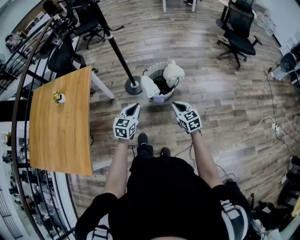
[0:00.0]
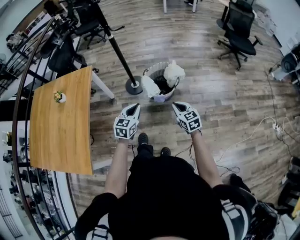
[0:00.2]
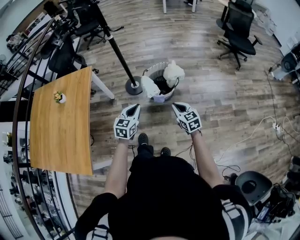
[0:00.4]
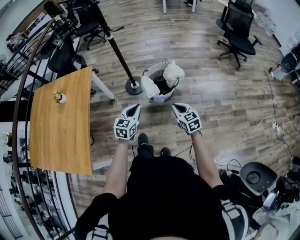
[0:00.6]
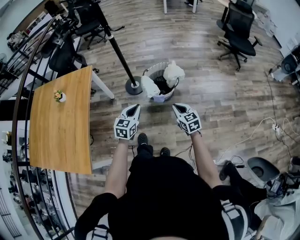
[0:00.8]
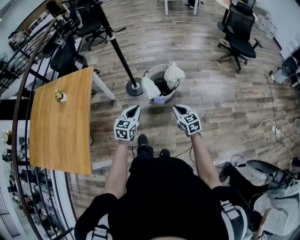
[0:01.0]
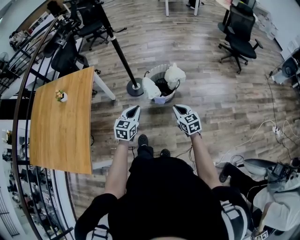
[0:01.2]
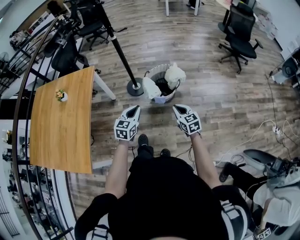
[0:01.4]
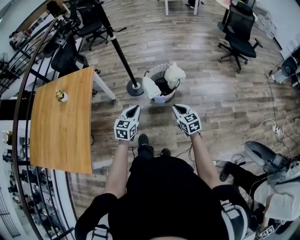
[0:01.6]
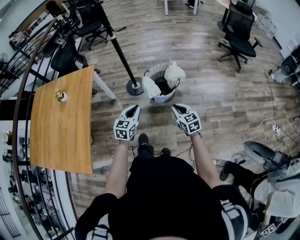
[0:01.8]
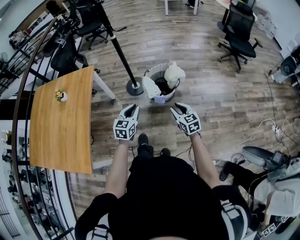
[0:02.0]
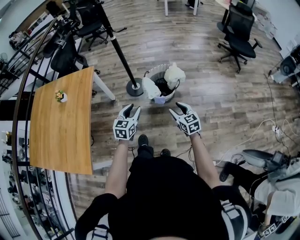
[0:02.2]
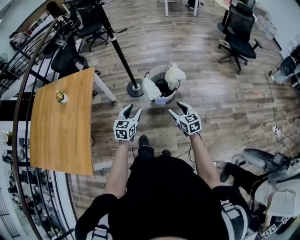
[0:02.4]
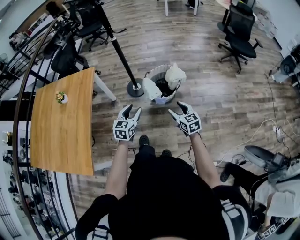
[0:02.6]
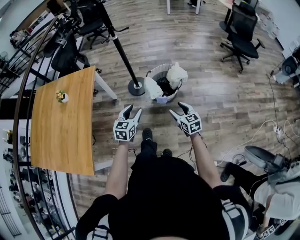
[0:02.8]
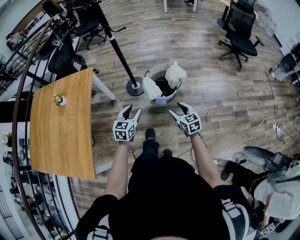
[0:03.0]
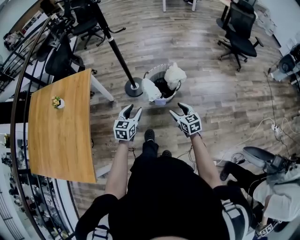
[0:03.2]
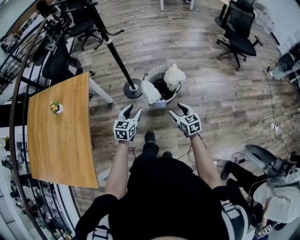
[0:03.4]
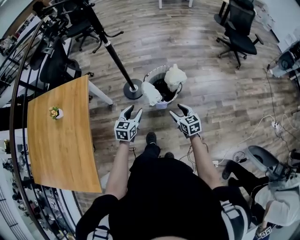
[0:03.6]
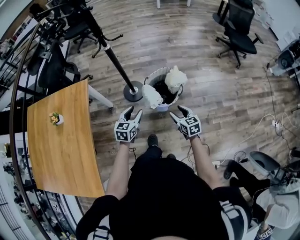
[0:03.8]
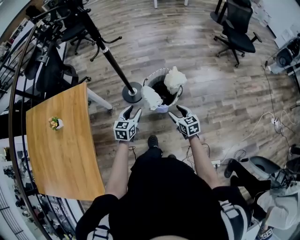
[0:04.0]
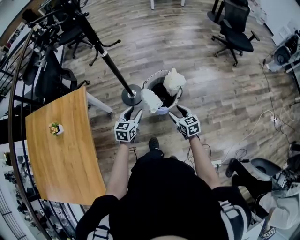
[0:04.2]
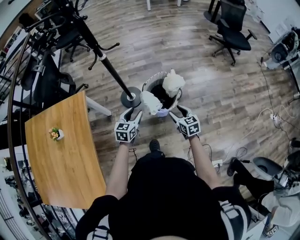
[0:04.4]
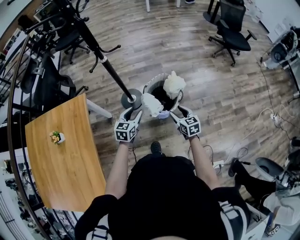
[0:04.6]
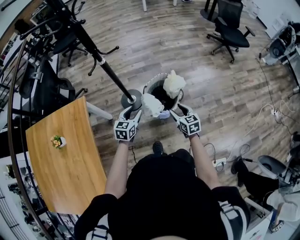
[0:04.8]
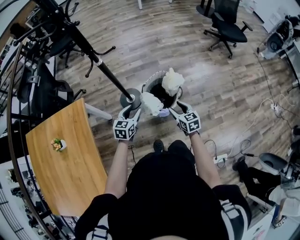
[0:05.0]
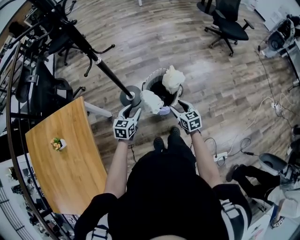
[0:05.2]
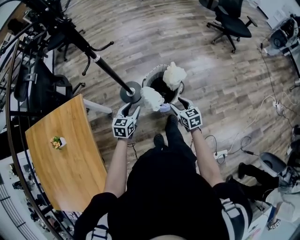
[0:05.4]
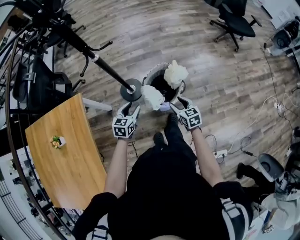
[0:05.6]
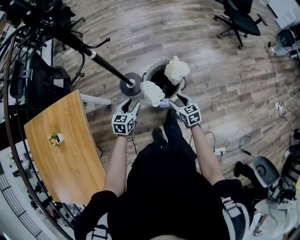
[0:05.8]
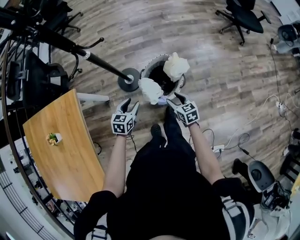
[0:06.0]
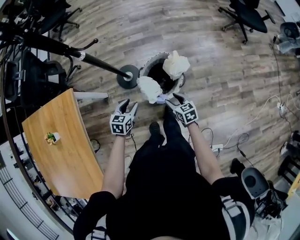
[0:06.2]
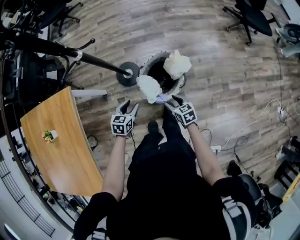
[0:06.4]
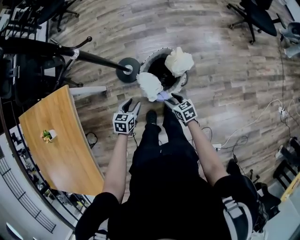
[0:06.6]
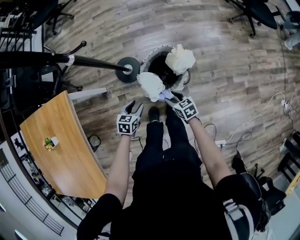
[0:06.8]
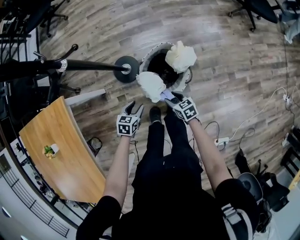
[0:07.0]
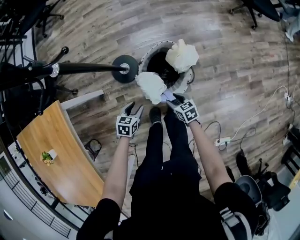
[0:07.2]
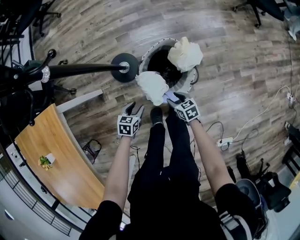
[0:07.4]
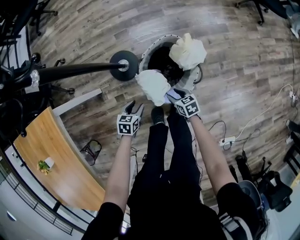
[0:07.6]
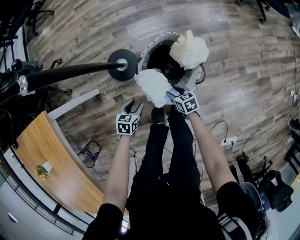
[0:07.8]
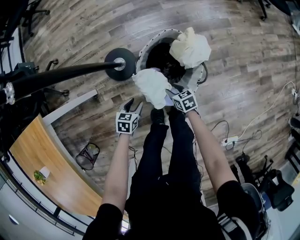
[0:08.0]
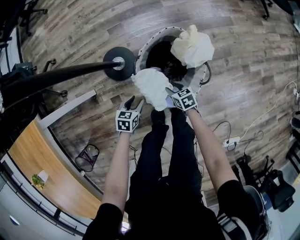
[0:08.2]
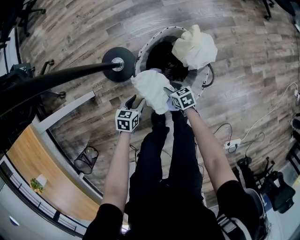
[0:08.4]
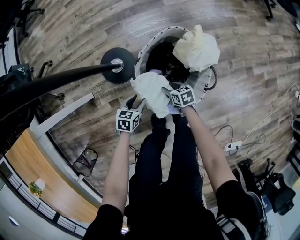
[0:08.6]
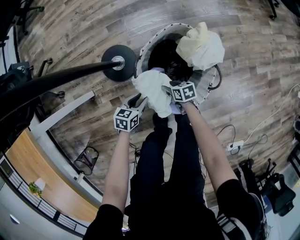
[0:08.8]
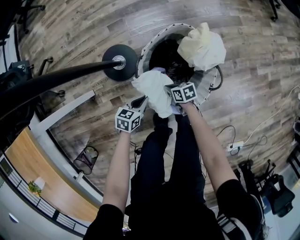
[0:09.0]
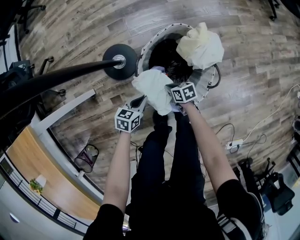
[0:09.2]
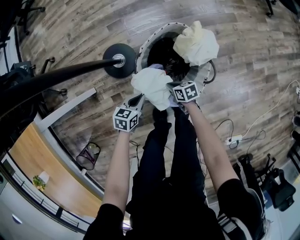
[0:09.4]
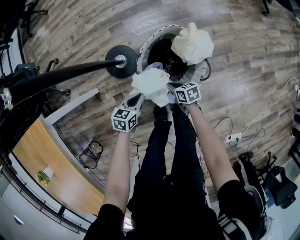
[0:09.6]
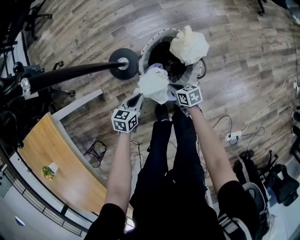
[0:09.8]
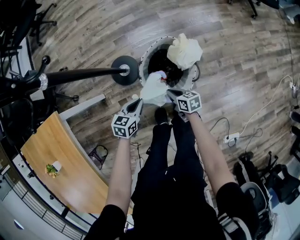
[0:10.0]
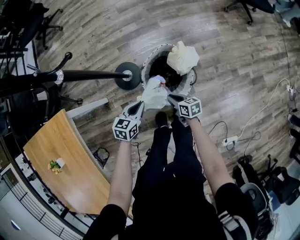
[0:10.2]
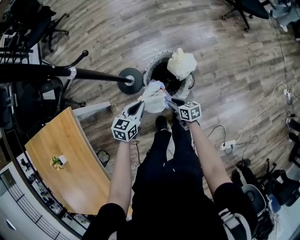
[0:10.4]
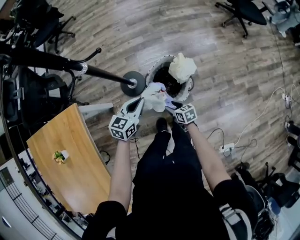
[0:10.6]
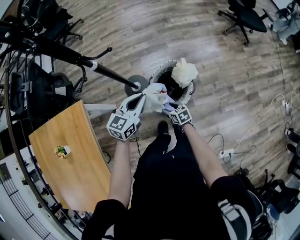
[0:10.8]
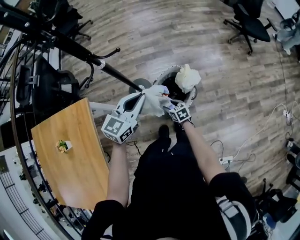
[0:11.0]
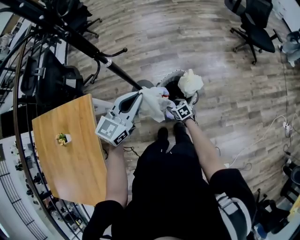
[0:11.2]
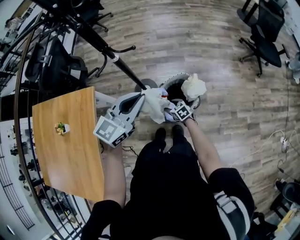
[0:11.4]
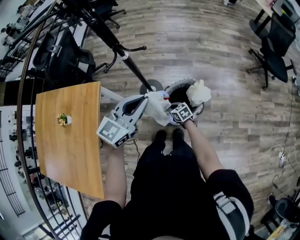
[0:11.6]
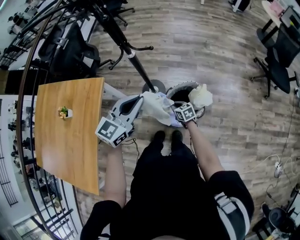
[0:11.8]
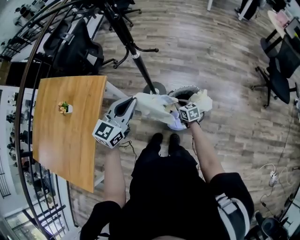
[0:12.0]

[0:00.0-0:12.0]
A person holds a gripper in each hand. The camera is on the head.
0:00.0 to 0:01.6: The grippers move only a little.
0:01.6 to 0:03.0: The left gripper shifts by some 5 cm, and opens up. The right gripper opens its fingers.
0:03.0 to 0:04.4: Both grippers travel together forward, about 15 cm.
0:04.4 to 0:06.0: Both grippers move forward and downward, approximately 10 cm.
0:06.0 to 0:07.6: Both grippers travel together downward, some 30 cm.
0:07.6 to 0:09.0: The grippers both shift downward by roughly 15 cm. The right gripper closes up; the left gripper closes.
0:09.0 to 0:10.4: The grippers both shift upward by about 35 cm. The right gripper opens up.
0:10.4 to 0:12.0: The right gripper is displaced upward, forward and to the left by about 20 cm, rotates roughly 40 degrees, and closes its fingers; the left gripper travels upward by approximately 30 cm, and rotates about 40 degrees.

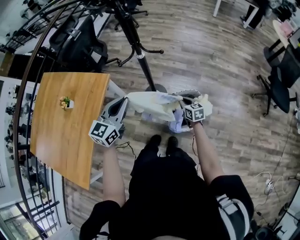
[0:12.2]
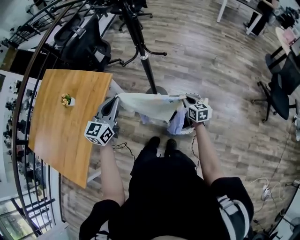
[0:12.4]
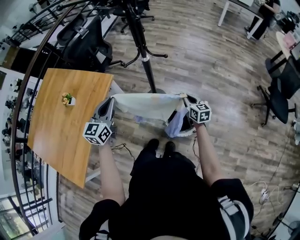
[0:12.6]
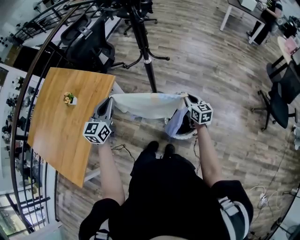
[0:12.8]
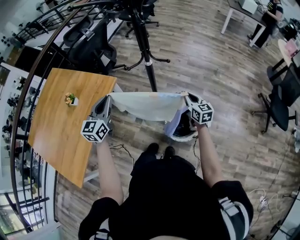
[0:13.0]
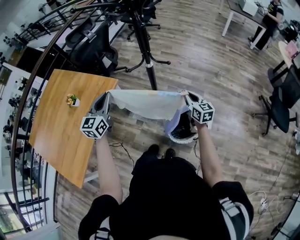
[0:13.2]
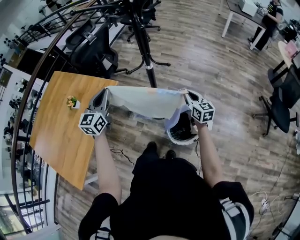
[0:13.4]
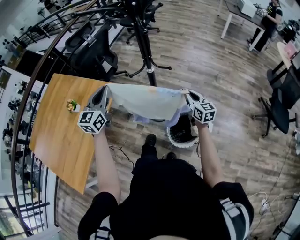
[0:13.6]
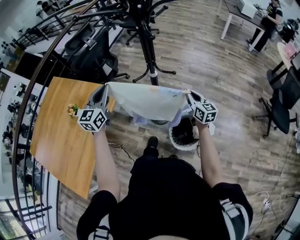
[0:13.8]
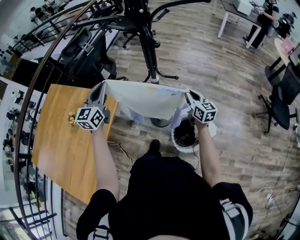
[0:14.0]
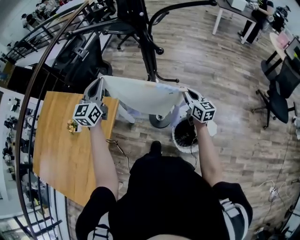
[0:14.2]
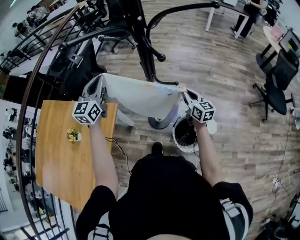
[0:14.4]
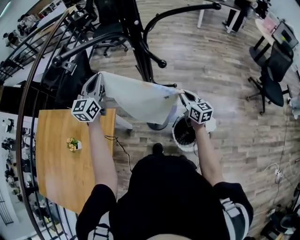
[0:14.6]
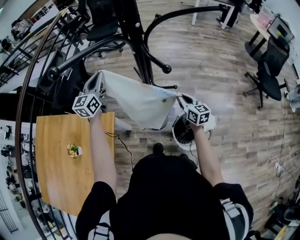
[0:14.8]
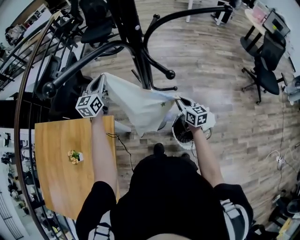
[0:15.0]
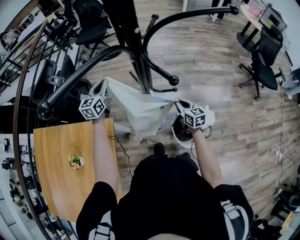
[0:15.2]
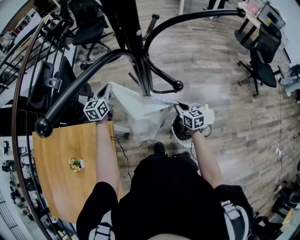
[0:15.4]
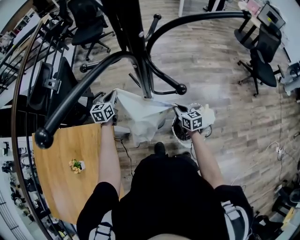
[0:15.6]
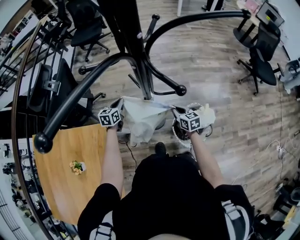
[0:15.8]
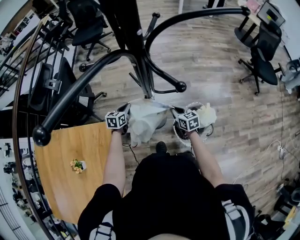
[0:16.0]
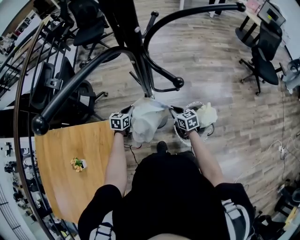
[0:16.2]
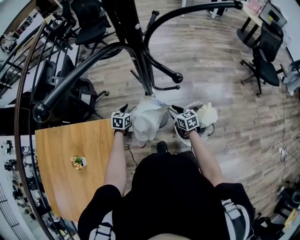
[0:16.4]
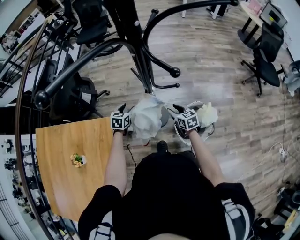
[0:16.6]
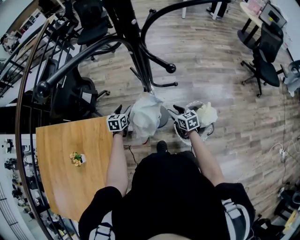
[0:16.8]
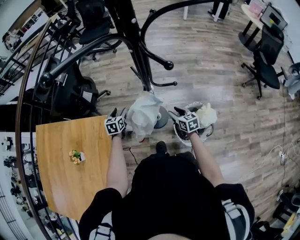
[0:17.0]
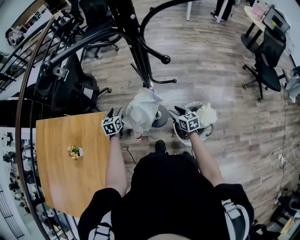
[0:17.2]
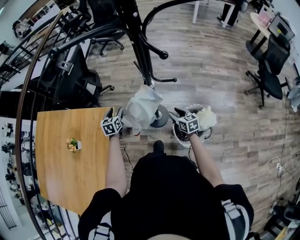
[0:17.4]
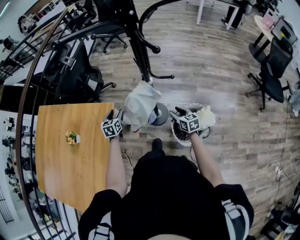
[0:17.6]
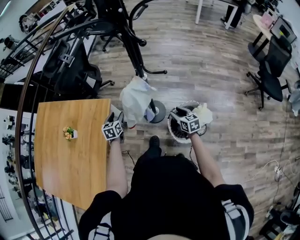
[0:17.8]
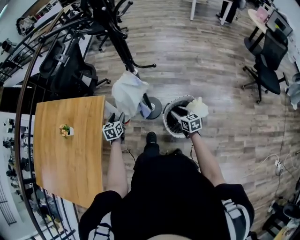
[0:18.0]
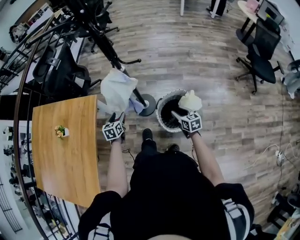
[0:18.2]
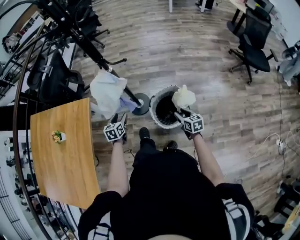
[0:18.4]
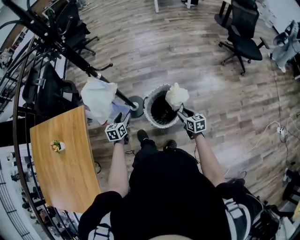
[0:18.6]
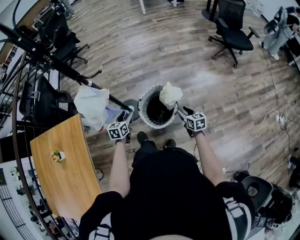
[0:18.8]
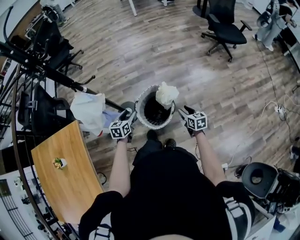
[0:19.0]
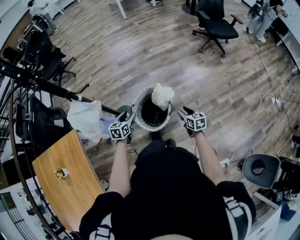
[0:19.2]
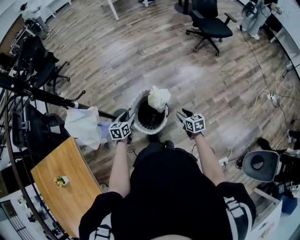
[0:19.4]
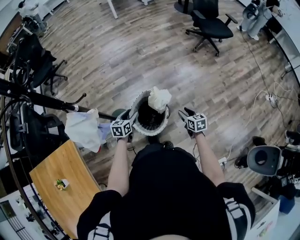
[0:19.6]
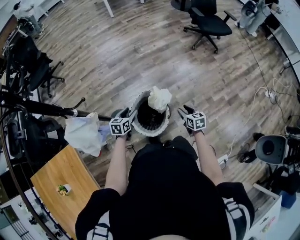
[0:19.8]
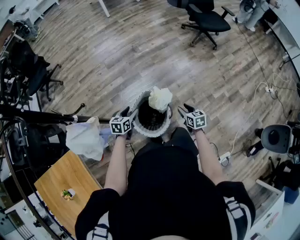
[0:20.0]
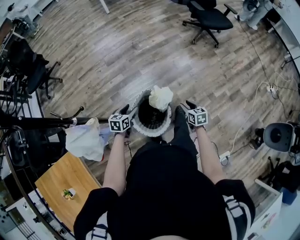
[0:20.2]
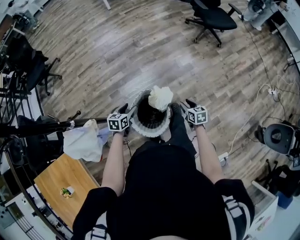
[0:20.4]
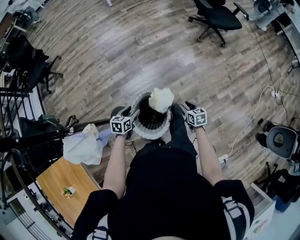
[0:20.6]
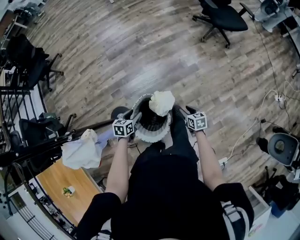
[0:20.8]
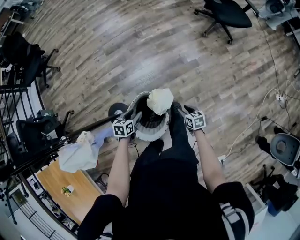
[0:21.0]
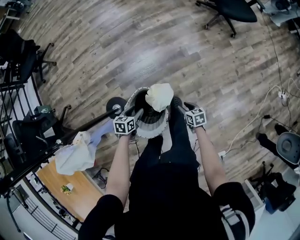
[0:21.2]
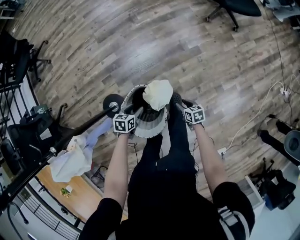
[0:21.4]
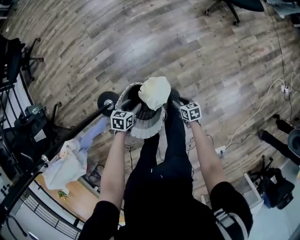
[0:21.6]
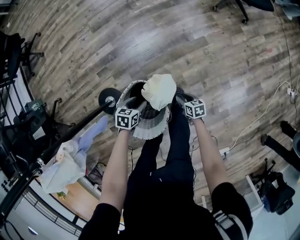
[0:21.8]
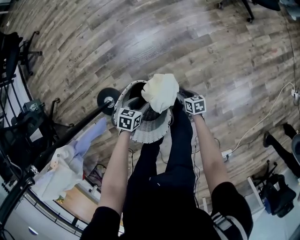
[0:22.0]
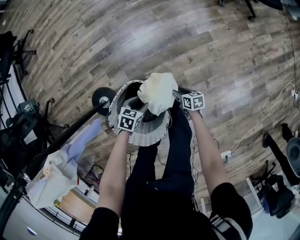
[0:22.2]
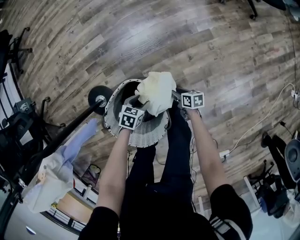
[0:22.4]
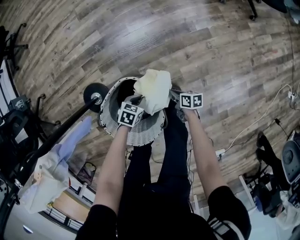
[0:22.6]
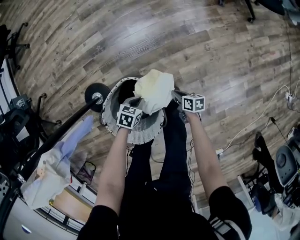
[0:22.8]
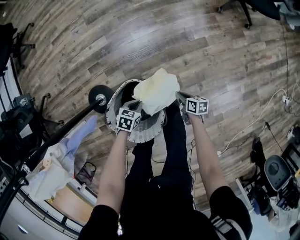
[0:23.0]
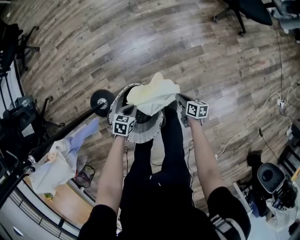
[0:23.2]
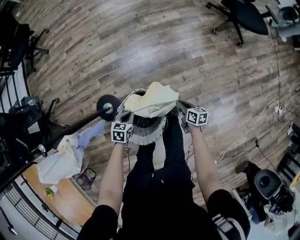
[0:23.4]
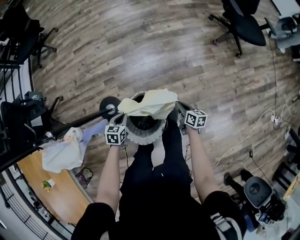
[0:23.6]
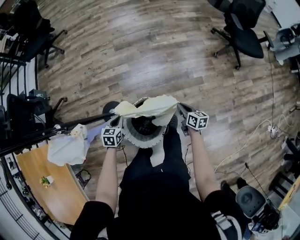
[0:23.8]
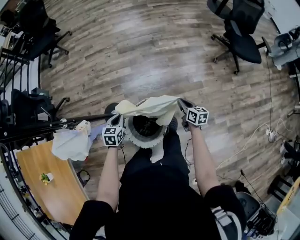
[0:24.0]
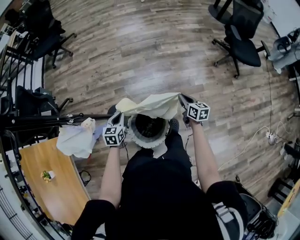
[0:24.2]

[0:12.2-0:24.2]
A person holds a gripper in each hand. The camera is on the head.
0:12.2 to 0:13.8: The left gripper is displaced to the left, forward and upward by roughly 20 cm. The right gripper moves upward and forward, some 20 cm, and rotates about 20 degrees.
0:13.8 to 0:15.2: The right gripper goes some 10 cm downward, forward and to the left. The left gripper goes roughly 30 cm forward, and rotates approximately 20 degrees.
0:15.2 to 0:16.6: The left gripper moves downward and backward, some 25 cm, rotates about 30 degrees, and opens; the right gripper heads downward, covering roughly 10 cm, and opens its fingers.
0:16.6 to 0:18.2: The right gripper is displaced backward and to the right by roughly 25 cm, while the left gripper travels backward by about 25 cm, and changes its angle by some 20 degrees.
0:18.2 to 0:19.8: The left gripper shifts by roughly 35 cm, and swivels approximately 50 degrees, while the right gripper moves about 25 cm, and changes its angle by about 40 degrees.
0:19.8 to 0:21.2: The left gripper shifts roughly 20 cm downward, forward and to the right. Meanwhile the right gripper goes some 20 cm downward and forward, and swivels about 20 degrees.
0:21.2 to 0:22.6: Both grippers move downward, roughly 25 cm. The left gripper changes its angle by about 20 degrees, and closes. Meanwhile the right gripper rotates some 30 degrees, and closes.
0:22.6 to 0:24.2: The two grippers go some 40 cm upward. The left gripper rotates roughly 50 degrees; the right gripper rotates about 40 degrees.
